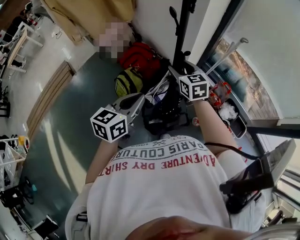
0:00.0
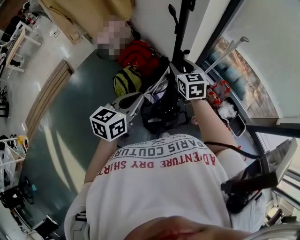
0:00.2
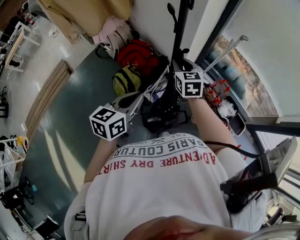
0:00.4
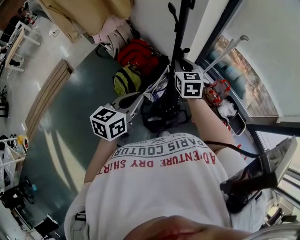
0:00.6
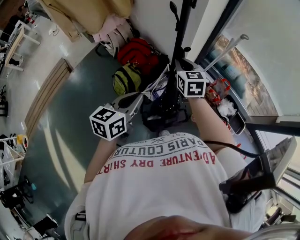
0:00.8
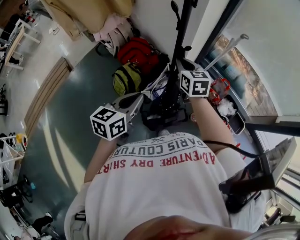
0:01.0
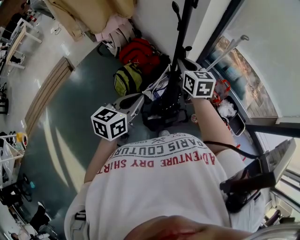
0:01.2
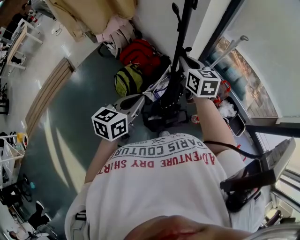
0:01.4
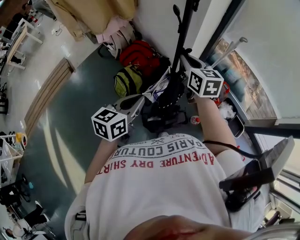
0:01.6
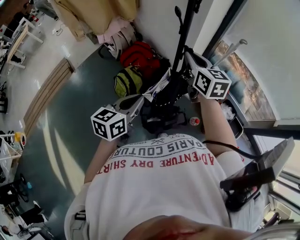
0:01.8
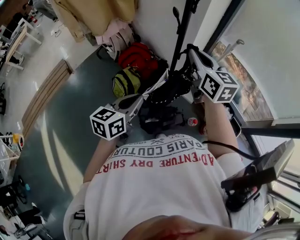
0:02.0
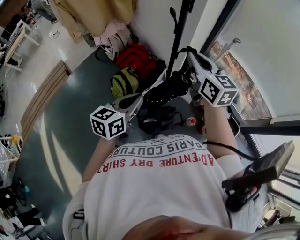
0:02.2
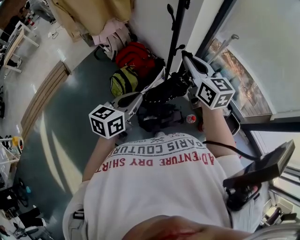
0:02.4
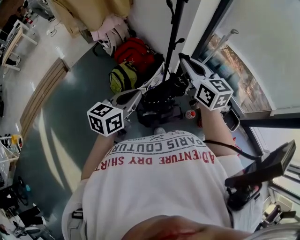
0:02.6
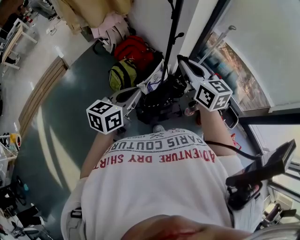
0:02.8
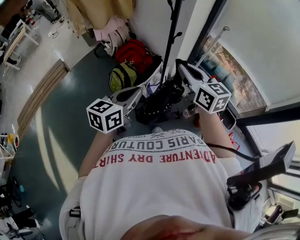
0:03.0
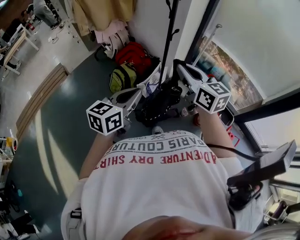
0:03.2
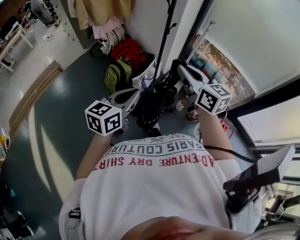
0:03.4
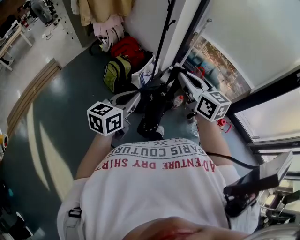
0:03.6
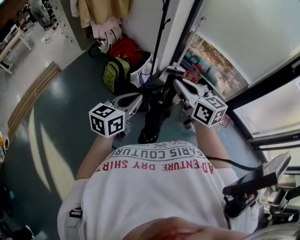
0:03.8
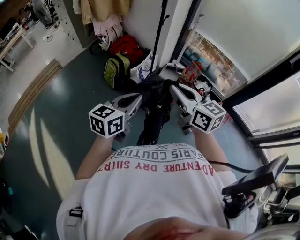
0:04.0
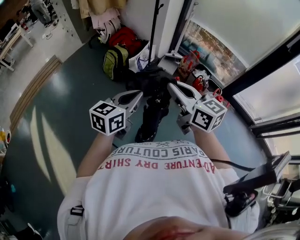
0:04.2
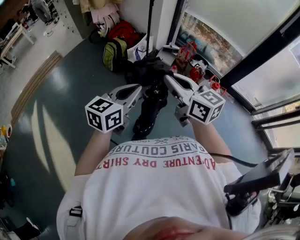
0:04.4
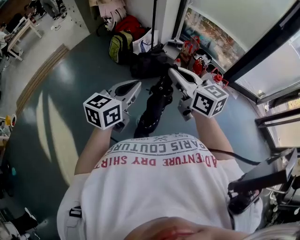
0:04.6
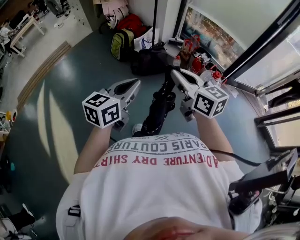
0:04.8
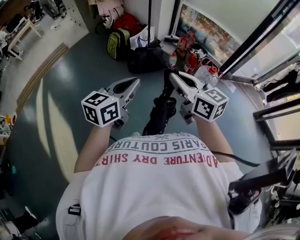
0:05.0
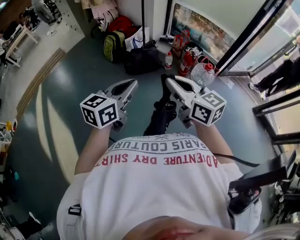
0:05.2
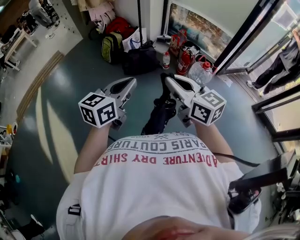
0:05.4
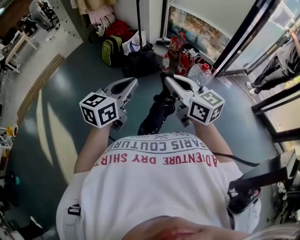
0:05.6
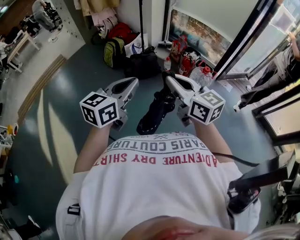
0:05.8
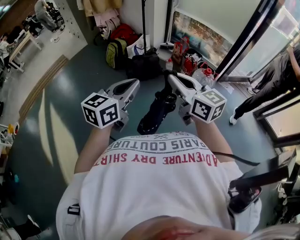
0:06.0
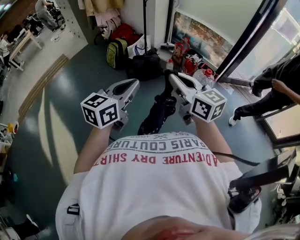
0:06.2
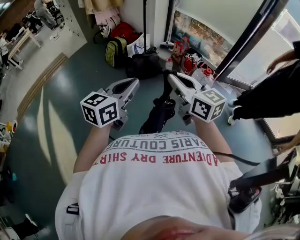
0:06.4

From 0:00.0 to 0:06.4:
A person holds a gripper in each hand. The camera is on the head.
From 0:00.0 to 0:01.6: The right gripper goes approximately 5 cm upward, and closes up.
From 0:01.6 to 0:03.2: The two grippers go about 25 cm backward.
From 0:03.2 to 0:04.8: Both grippers are carried backward, some 60 cm.
From 0:04.8 to 0:06.4: Both grippers travel together backward, roughly 5 cm.

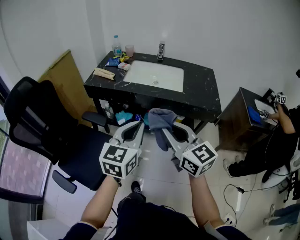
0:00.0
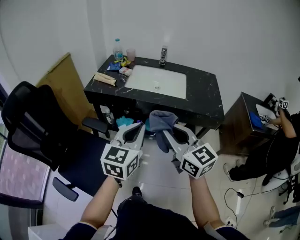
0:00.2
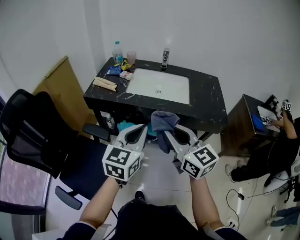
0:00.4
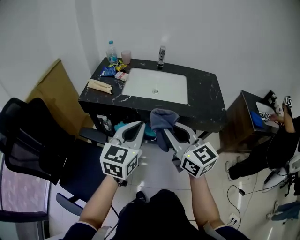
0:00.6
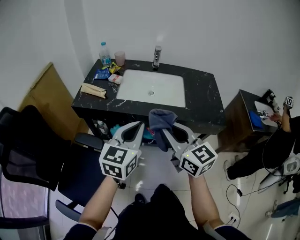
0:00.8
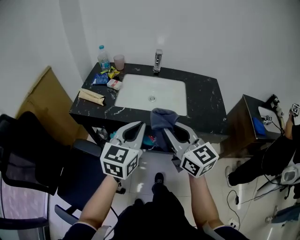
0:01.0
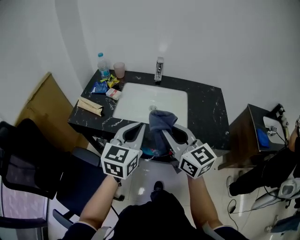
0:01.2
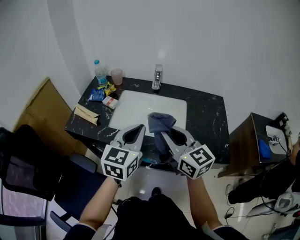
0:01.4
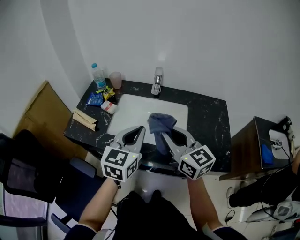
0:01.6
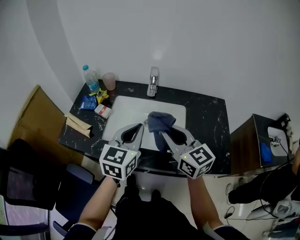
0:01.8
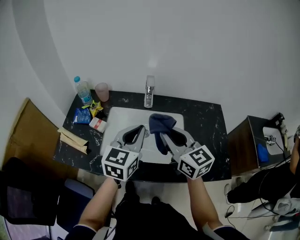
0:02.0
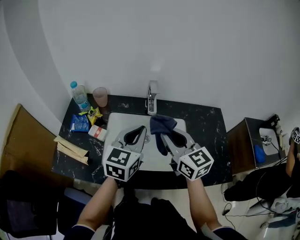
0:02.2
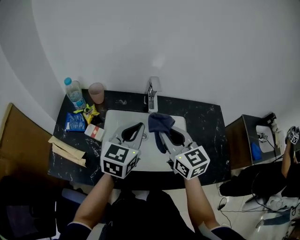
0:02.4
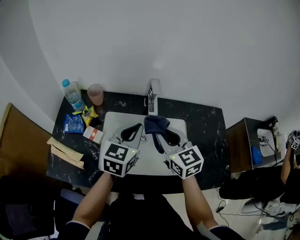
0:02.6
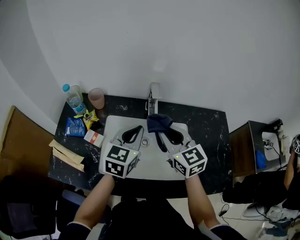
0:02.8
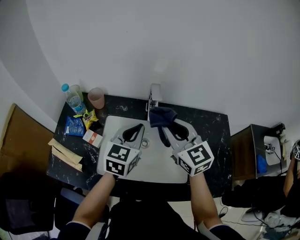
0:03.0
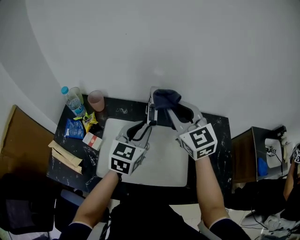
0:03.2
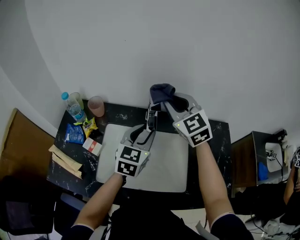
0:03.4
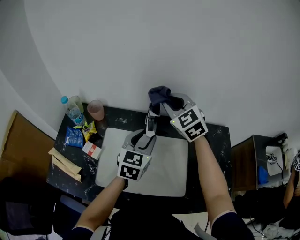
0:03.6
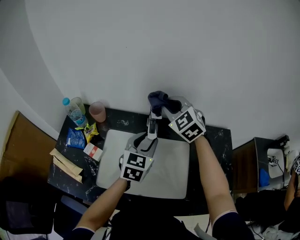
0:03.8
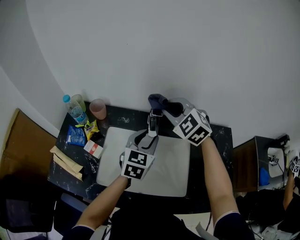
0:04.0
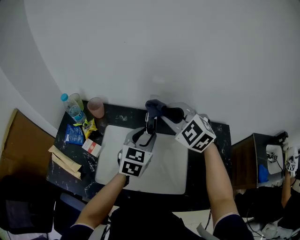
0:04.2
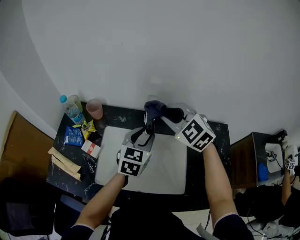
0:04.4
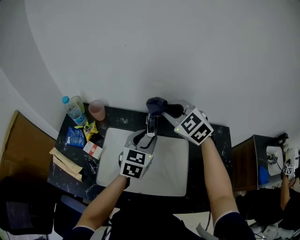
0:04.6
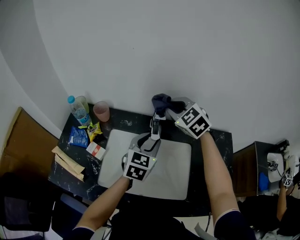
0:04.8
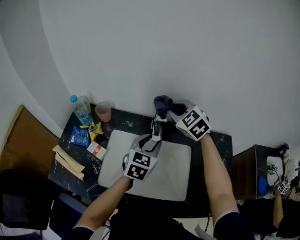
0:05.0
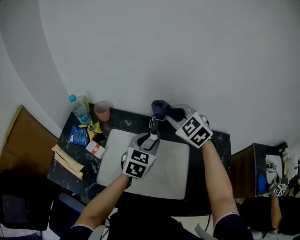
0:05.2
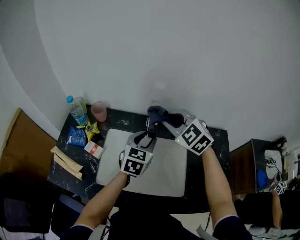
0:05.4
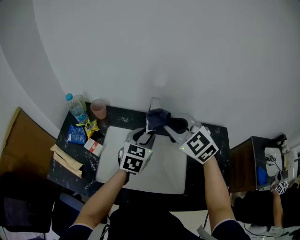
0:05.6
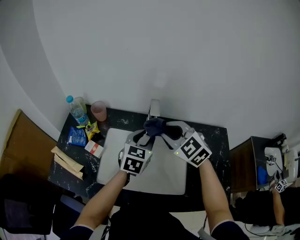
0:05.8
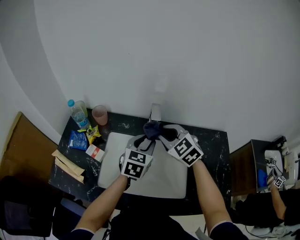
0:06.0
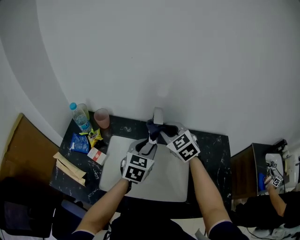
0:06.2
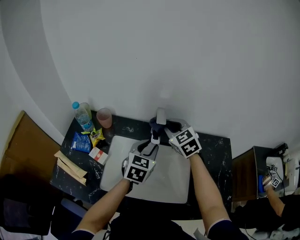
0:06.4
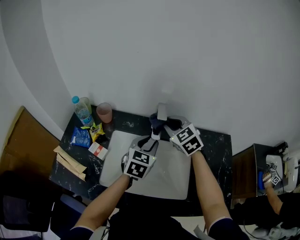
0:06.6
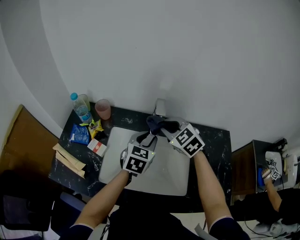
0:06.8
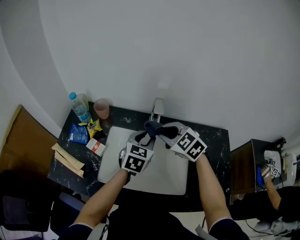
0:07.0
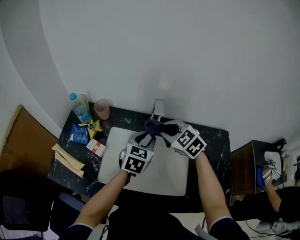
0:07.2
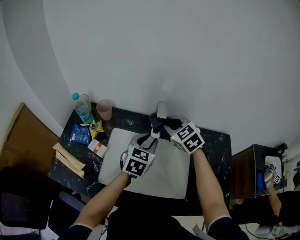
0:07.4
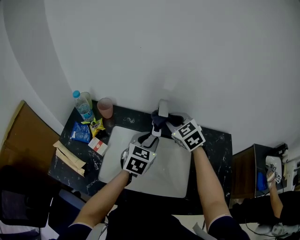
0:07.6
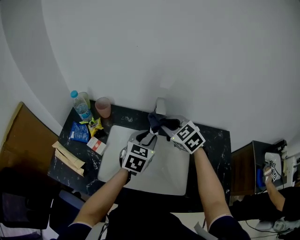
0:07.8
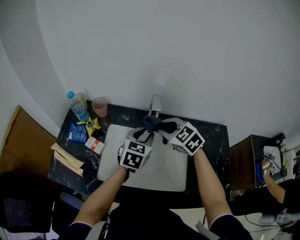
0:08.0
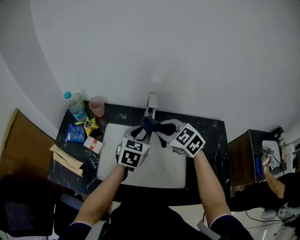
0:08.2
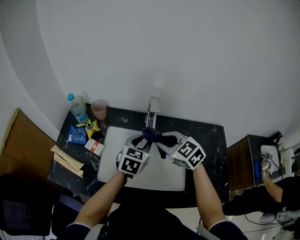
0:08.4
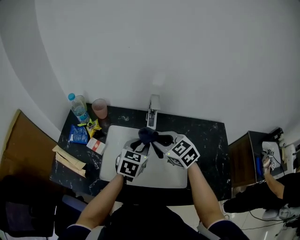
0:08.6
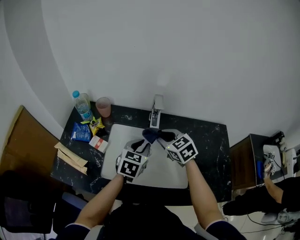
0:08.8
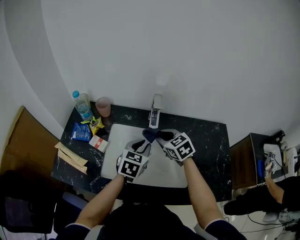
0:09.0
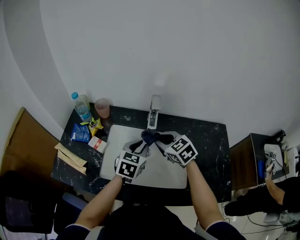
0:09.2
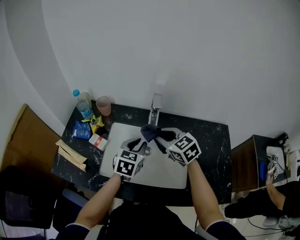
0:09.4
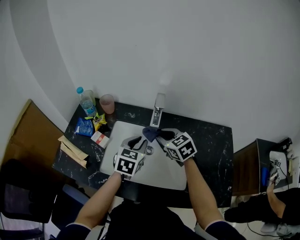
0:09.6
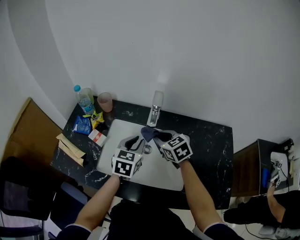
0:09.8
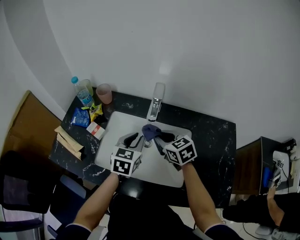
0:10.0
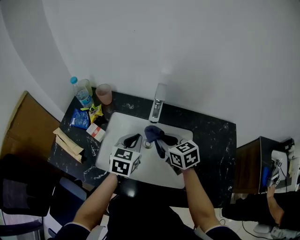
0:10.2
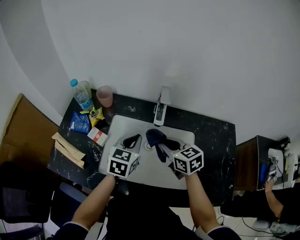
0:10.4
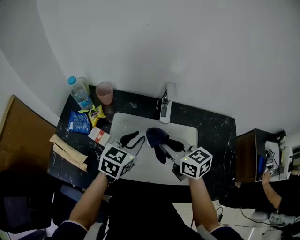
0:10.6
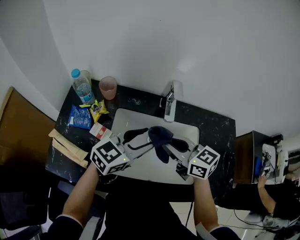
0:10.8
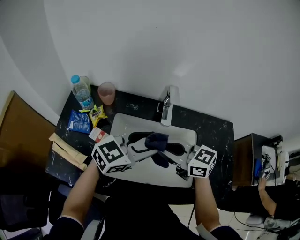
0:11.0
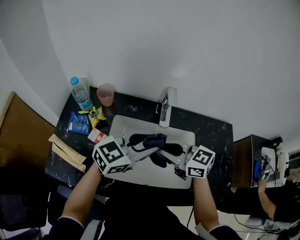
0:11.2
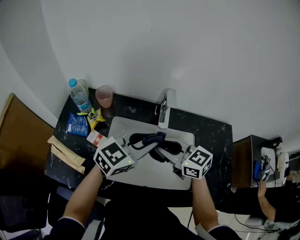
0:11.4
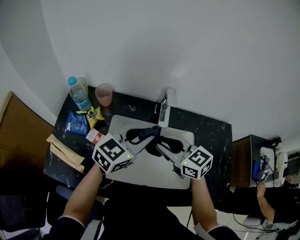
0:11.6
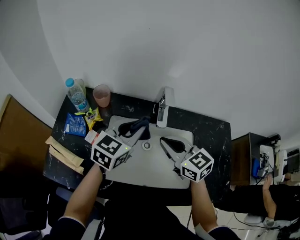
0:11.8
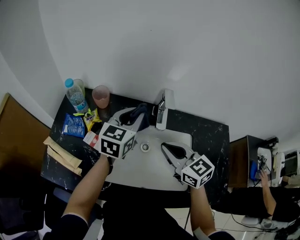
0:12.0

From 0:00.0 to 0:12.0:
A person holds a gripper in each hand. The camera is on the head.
From 0:00.0 to 0:01.6: The two grippers go roughly 35 cm forward.
From 0:01.6 to 0:03.0: Both grippers move forward, about 20 cm.
From 0:03.0 to 0:04.4: The left gripper moves approximately 5 cm, and opens its fingers. Meanwhile the right gripper heads forward, covering roughly 10 cm, and rotates about 40 degrees.
From 0:04.4 to 0:06.0: The right gripper goes about 5 cm downward, and travels forward and back again, some 5 cm each way.
From 0:06.0 to 0:07.6: The right gripper goes forward and backward, about 10 cm each way, reversing 2 times.
From 0:07.6 to 0:09.0: The left gripper shifts approximately 5 cm backward. The right gripper goes approximately 10 cm backward and downward.
From 0:09.0 to 0:10.4: The left gripper closes its fingers.
From 0:10.4 to 0:12.0: The left gripper shifts by roughly 10 cm, and opens and closes again, while the right gripper shifts approximately 5 cm upward.

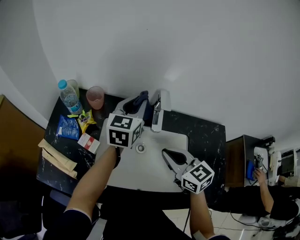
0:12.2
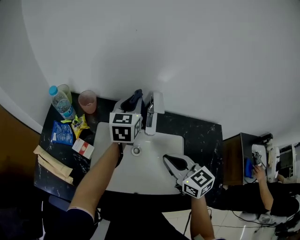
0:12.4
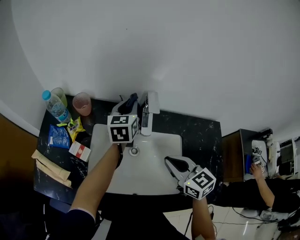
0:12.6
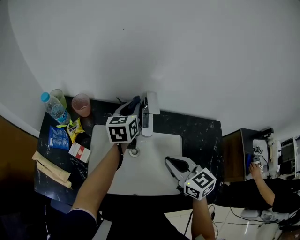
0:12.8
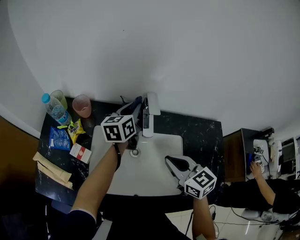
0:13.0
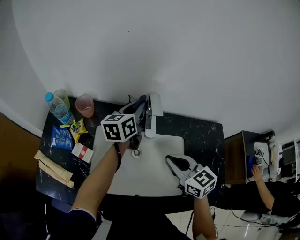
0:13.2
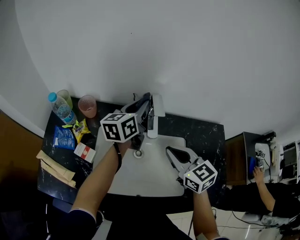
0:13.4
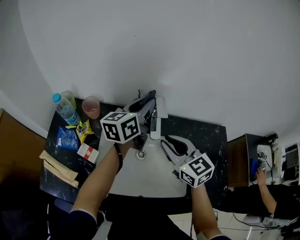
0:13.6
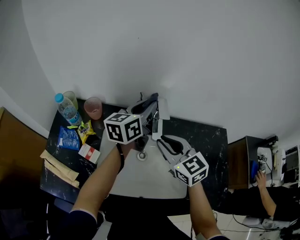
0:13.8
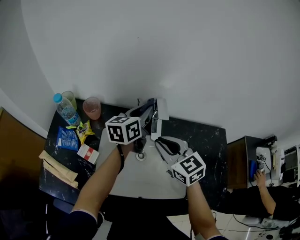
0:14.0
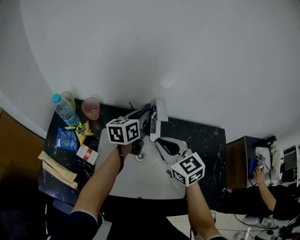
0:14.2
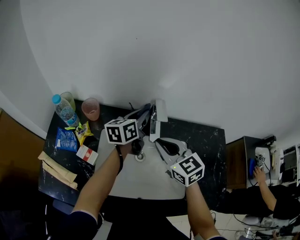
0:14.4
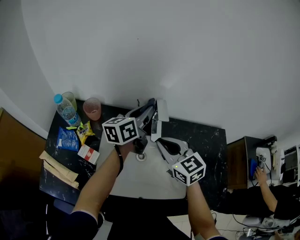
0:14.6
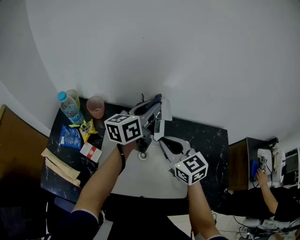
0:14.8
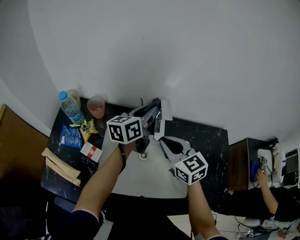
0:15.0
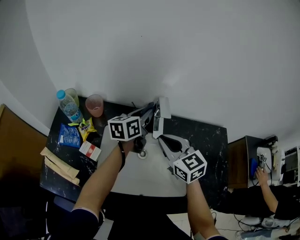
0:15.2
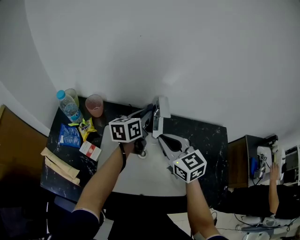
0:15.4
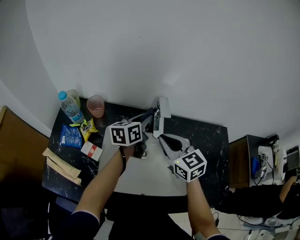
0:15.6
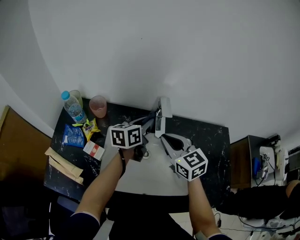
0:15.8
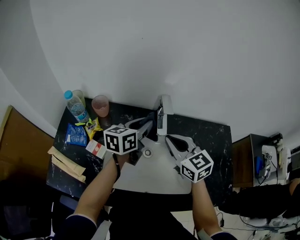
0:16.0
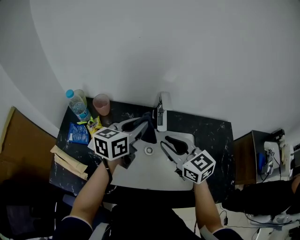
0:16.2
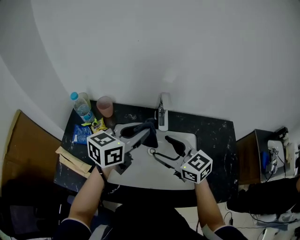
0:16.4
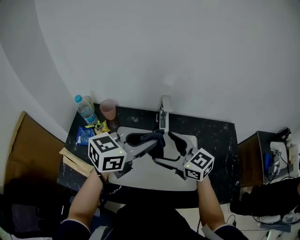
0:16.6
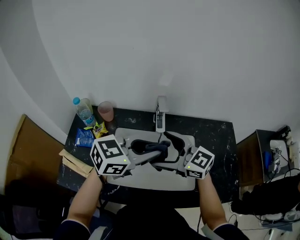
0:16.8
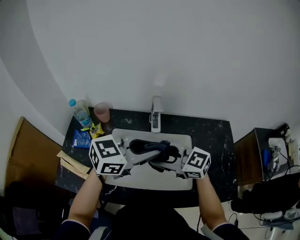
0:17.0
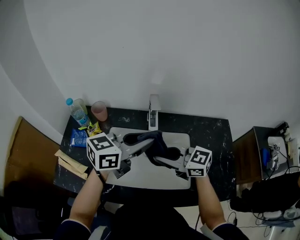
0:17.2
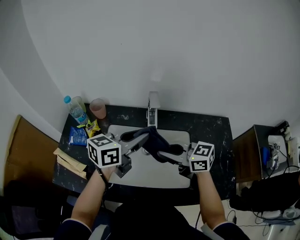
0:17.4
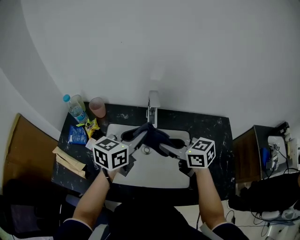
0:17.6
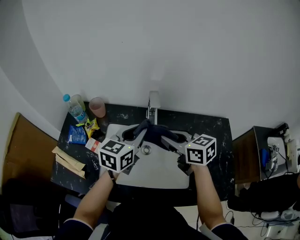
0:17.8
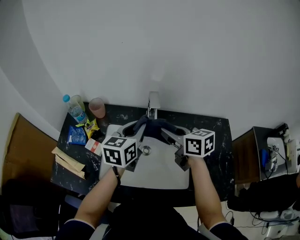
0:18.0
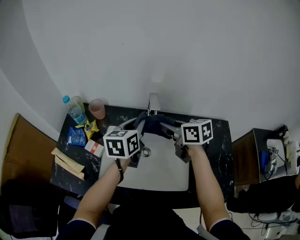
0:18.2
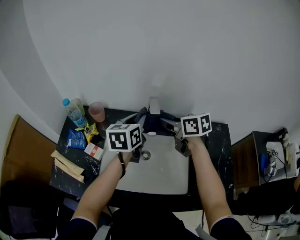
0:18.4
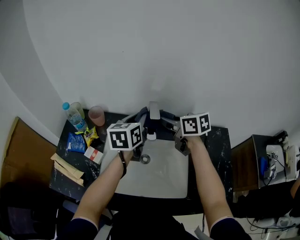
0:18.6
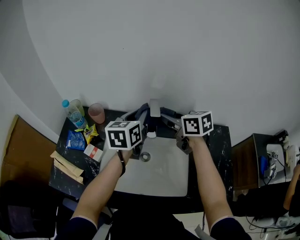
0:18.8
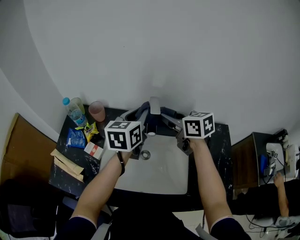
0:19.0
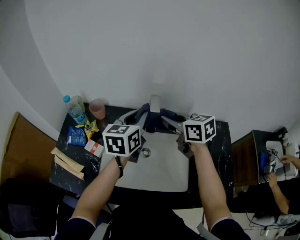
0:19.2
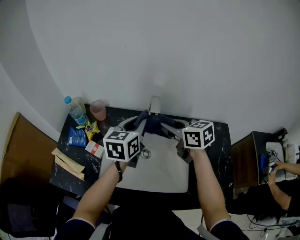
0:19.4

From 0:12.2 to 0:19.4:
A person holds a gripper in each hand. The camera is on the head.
From 0:12.2 to 0:13.6: The right gripper shifts approximately 5 cm forward. Meanwhile the left gripper travels downward and back again, approximately 10 cm each way, and turns by about 30 degrees.
From 0:15.0 to 0:16.6: The left gripper travels backward and upward by roughly 20 cm, and swivels some 30 degrees, while the right gripper goes approximately 5 cm backward, changes its angle by about 20 degrees, and opens up.
From 0:16.6 to 0:18.0: The right gripper changes place by some 10 cm, changes its angle by about 30 degrees, and closes. Meanwhile the left gripper shifts by roughly 10 cm, and turns by some 30 degrees.
